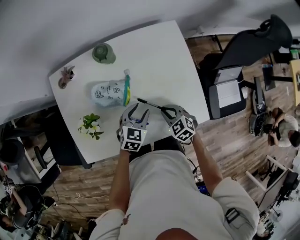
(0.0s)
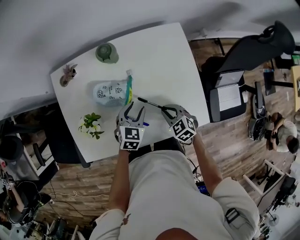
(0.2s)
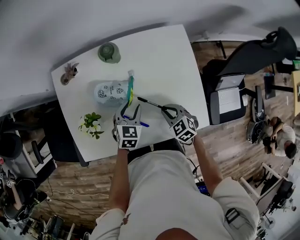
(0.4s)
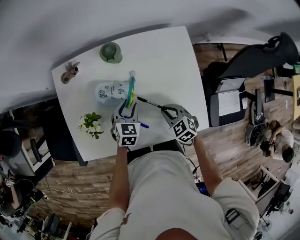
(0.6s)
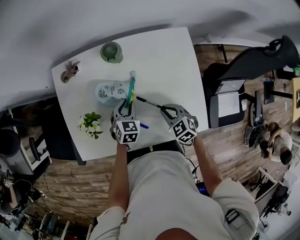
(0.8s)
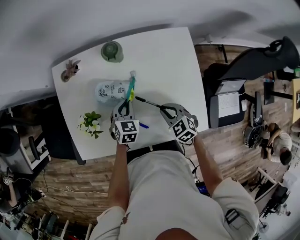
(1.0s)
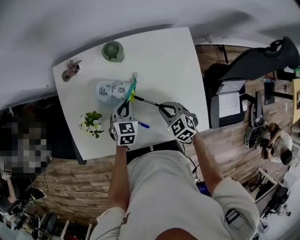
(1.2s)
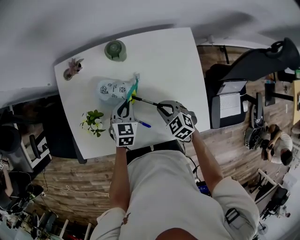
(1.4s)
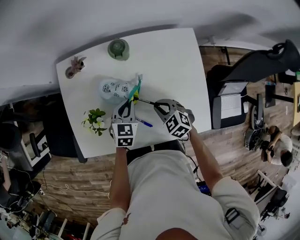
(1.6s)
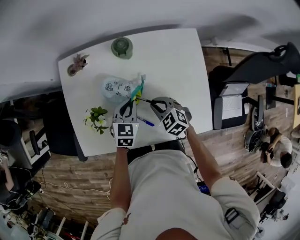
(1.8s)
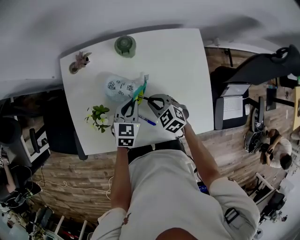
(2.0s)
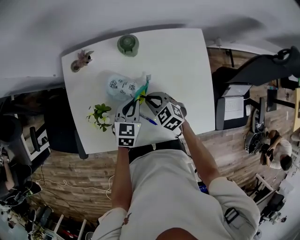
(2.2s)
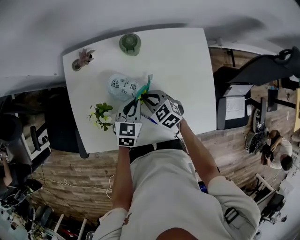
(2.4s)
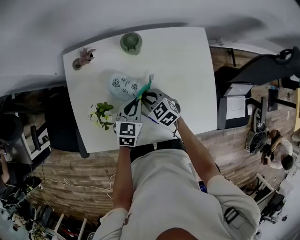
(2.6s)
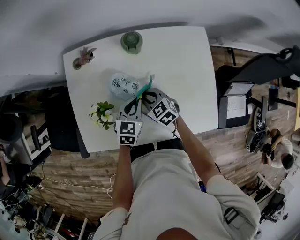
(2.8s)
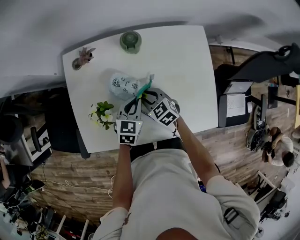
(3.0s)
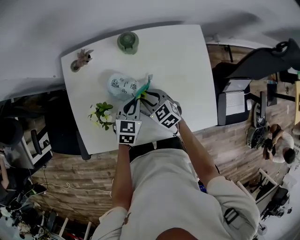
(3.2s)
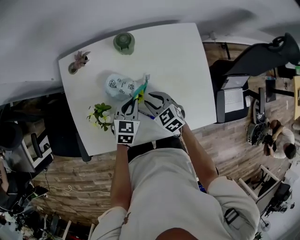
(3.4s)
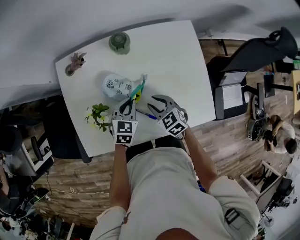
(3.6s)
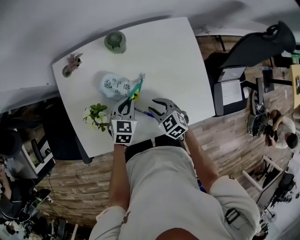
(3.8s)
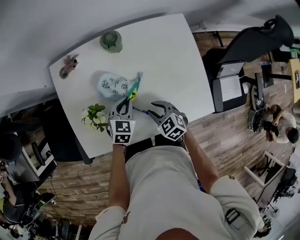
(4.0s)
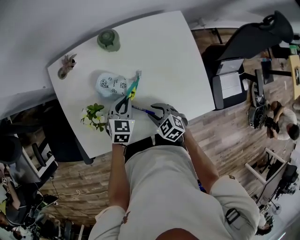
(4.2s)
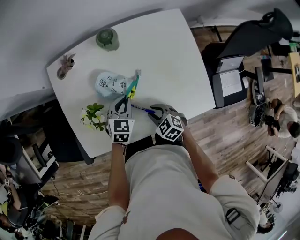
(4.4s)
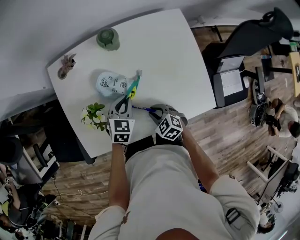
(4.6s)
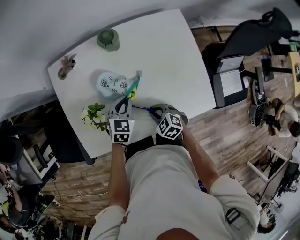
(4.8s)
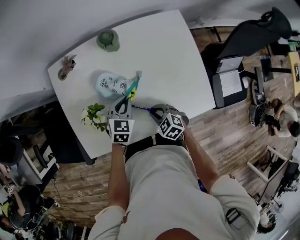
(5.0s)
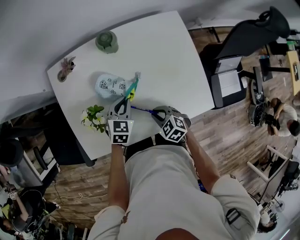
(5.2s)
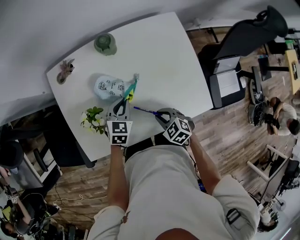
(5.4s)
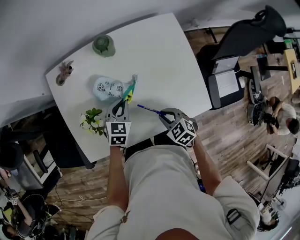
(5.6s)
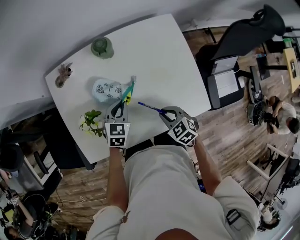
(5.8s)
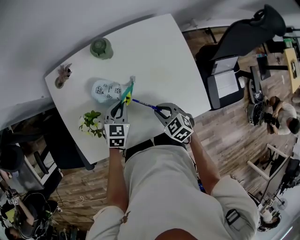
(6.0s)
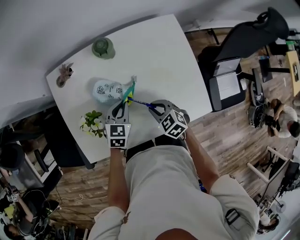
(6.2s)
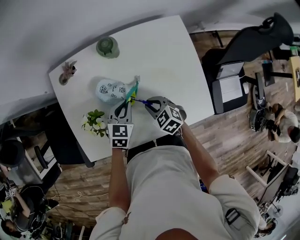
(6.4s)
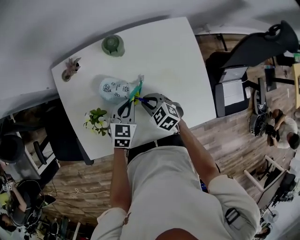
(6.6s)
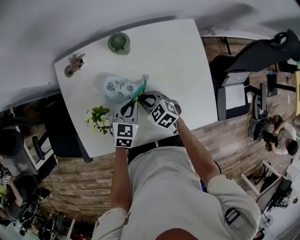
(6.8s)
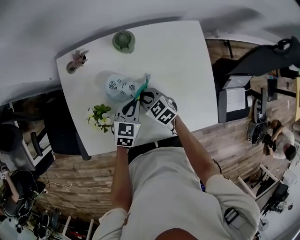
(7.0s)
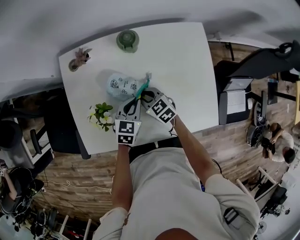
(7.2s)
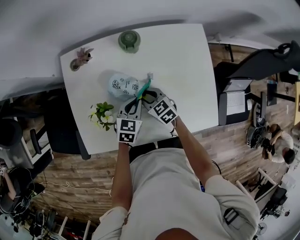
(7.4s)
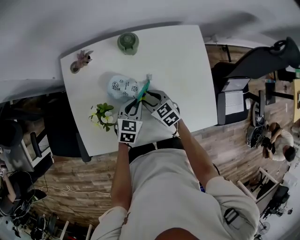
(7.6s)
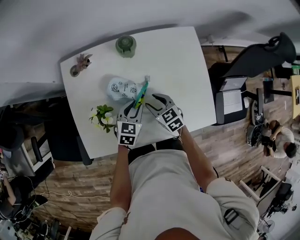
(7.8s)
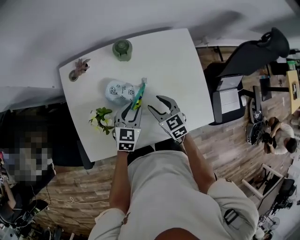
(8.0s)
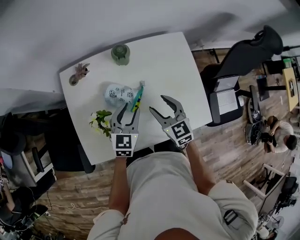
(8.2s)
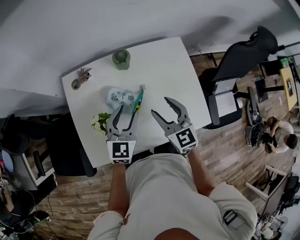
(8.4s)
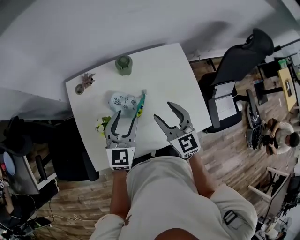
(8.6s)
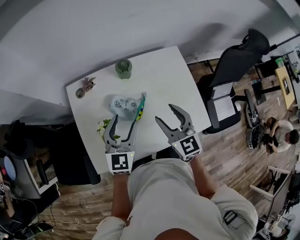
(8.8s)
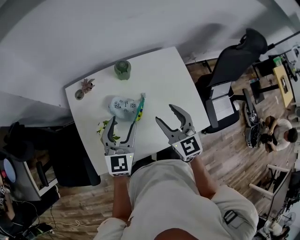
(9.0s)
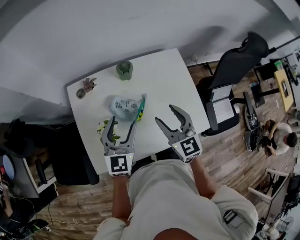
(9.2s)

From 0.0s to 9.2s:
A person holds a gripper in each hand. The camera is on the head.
From 0.0s to 1.6s: The two grippers go approximately 10 cm forward and to the left. The left gripper closes.
From 1.6s to 3.0s: The right gripper shifts some 10 cm to the left and forward.
From 3.0s to 4.6s: The right gripper moves backward, some 15 cm.
From 4.6s to 6.2s: The right gripper is displaced forward and upward by about 5 cm.
From 6.2s to 7.6s: The right gripper heads forward and to the left, covering roughly 10 cm, and opens up.
From 7.6s to 9.2s: The grippers both shift upward by about 25 cm. The right gripper rotates about 40 degrees, while the left gripper tips its fingers upward by some 30 degrees, and opens.

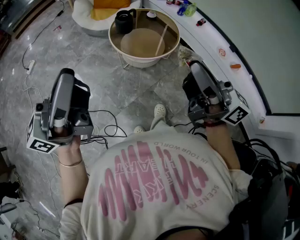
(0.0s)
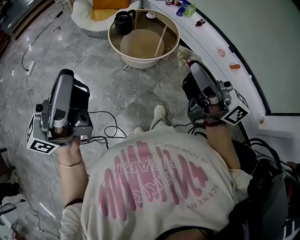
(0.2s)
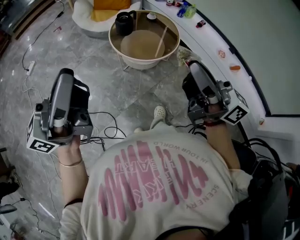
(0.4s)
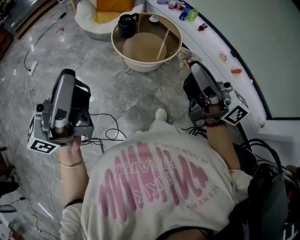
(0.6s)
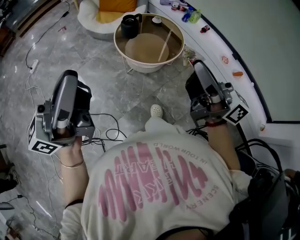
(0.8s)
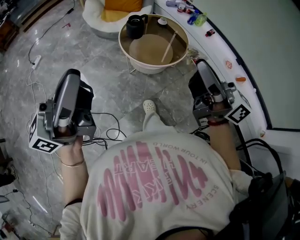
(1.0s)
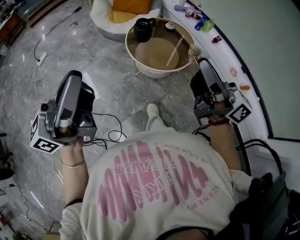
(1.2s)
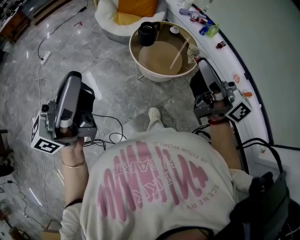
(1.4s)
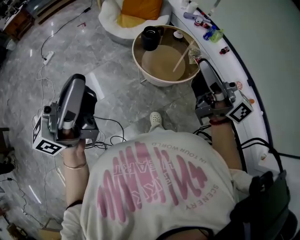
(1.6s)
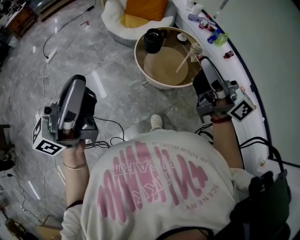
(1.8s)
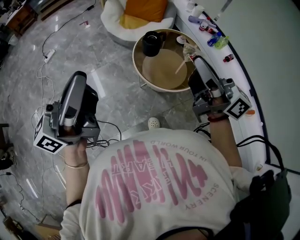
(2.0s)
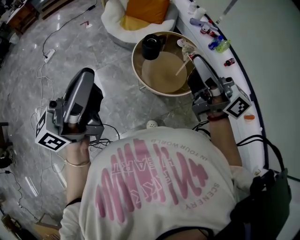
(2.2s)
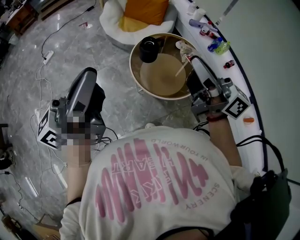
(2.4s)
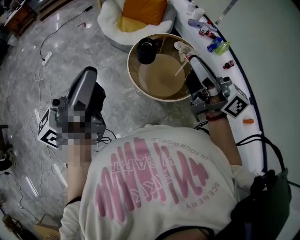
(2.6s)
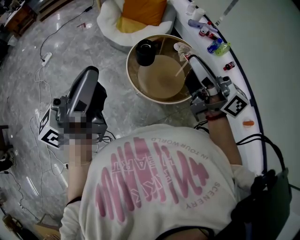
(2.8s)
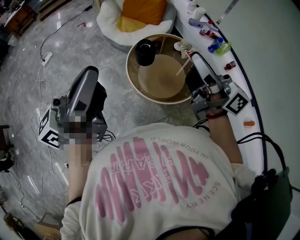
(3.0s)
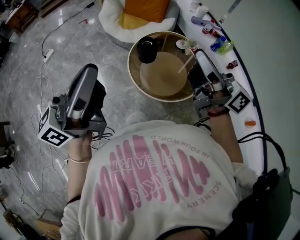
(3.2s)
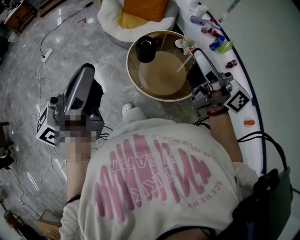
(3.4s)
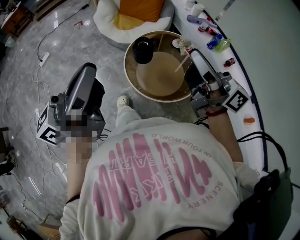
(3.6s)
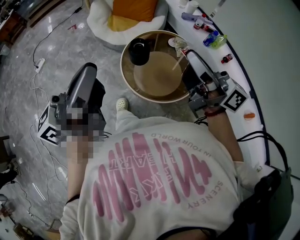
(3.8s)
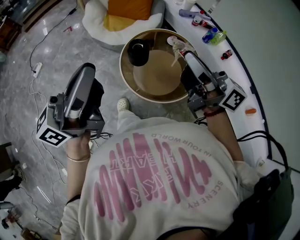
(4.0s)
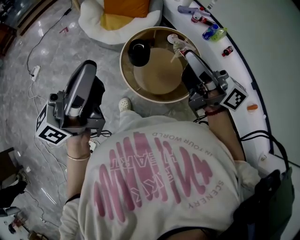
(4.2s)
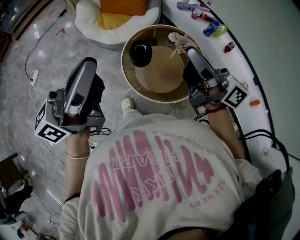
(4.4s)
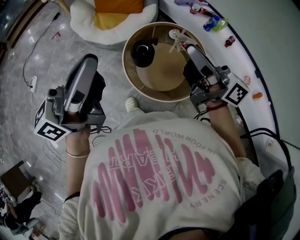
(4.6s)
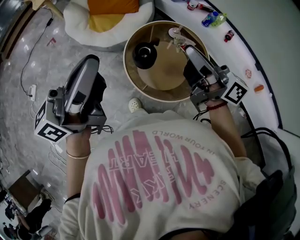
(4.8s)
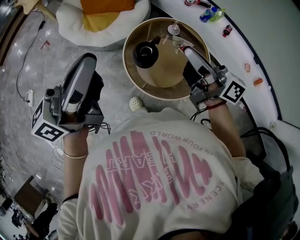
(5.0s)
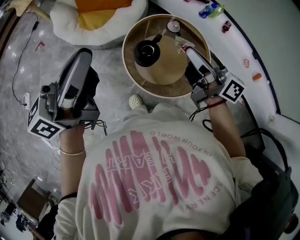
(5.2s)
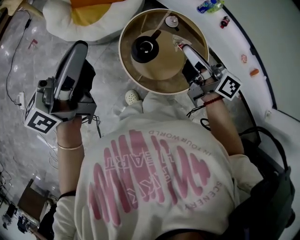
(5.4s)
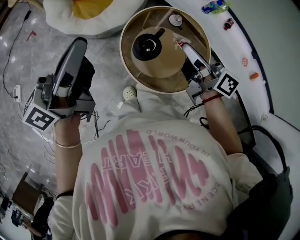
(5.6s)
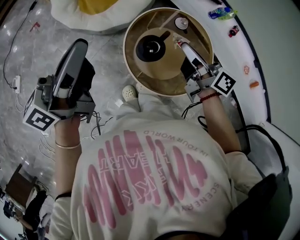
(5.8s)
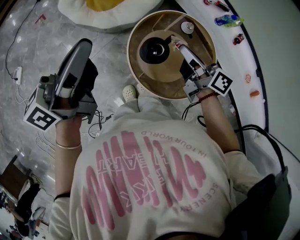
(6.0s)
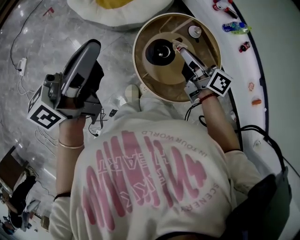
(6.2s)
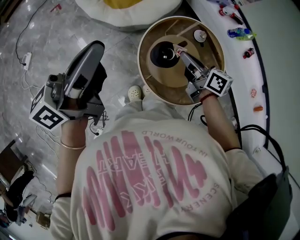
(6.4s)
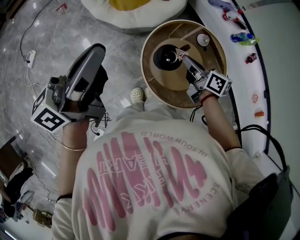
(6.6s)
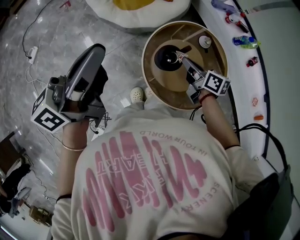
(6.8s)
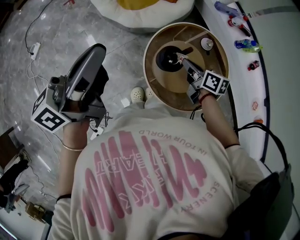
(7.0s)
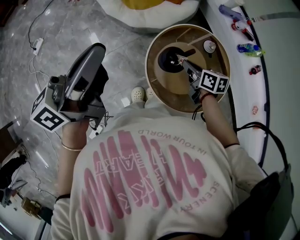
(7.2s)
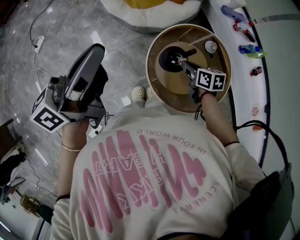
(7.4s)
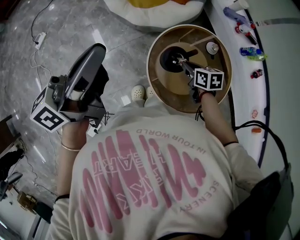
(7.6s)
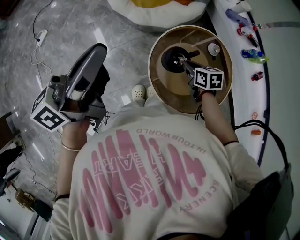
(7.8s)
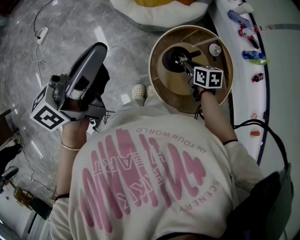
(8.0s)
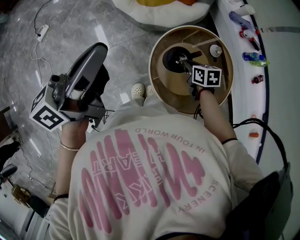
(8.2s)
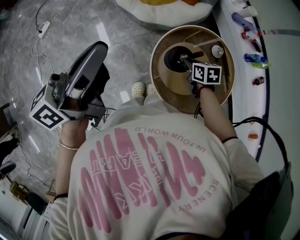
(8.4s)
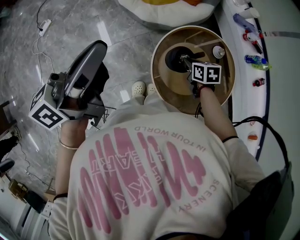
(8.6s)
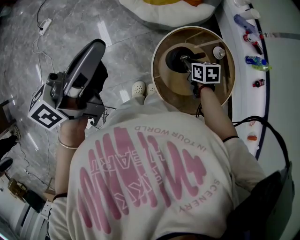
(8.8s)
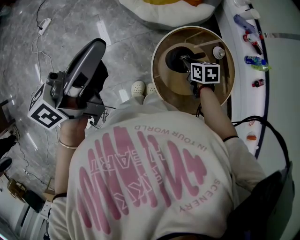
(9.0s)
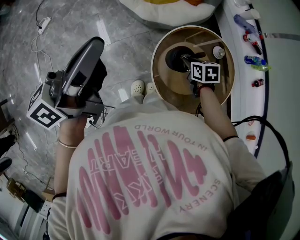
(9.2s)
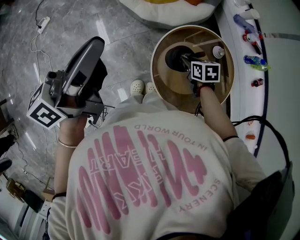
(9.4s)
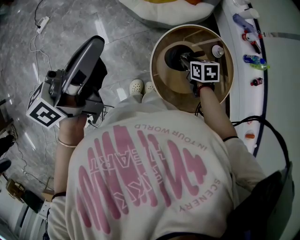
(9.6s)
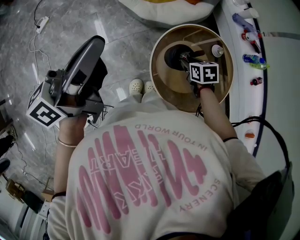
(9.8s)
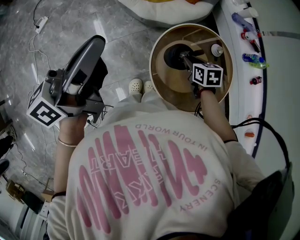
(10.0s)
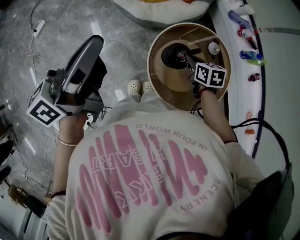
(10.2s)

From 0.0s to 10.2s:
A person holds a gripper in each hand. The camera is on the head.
From 0.0s to 1.4s: The right gripper moves forward, some 10 cm. The left gripper shifts some 5 cm forward.
From 1.4s to 3.0s: The left gripper moves forward and to the right, roughly 25 cm; the right gripper goes roughly 25 cm forward.
From 3.0s to 4.4s: The left gripper travels forward by some 15 cm. The right gripper shifts about 10 cm forward.
From 4.4s to 5.8s: The right gripper moves downward, forward and to the left, roughly 25 cm, and swivels some 30 degrees. The left gripper heads forward, to the left and downward, covering approximately 25 cm.
From 5.8s to 7.2s: The left gripper moves backward, some 5 cm. The right gripper heads downward, covering approximately 15 cm, and angles its fingers downward, by about 30 degrees.
From 7.2s to 8.8s: The right gripper moves downward, roughly 5 cm, and rotates roughly 30 degrees.
From 8.8s to 10.2s: The right gripper opens, then closes again.

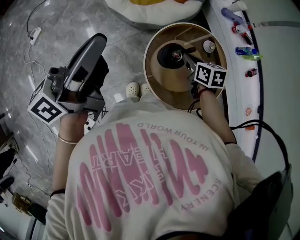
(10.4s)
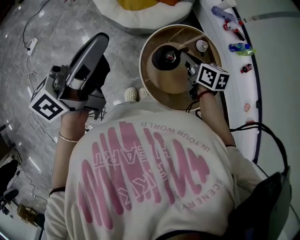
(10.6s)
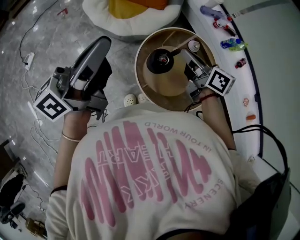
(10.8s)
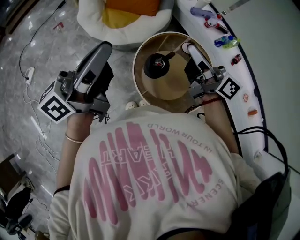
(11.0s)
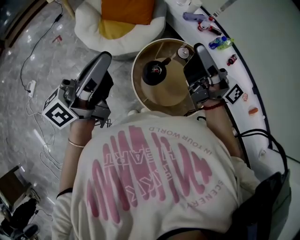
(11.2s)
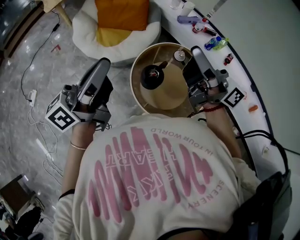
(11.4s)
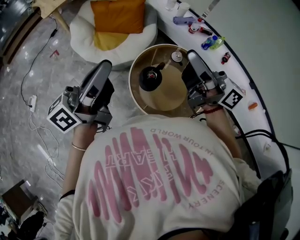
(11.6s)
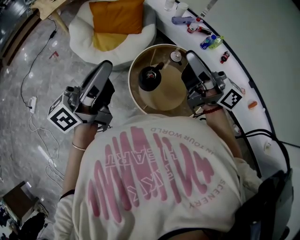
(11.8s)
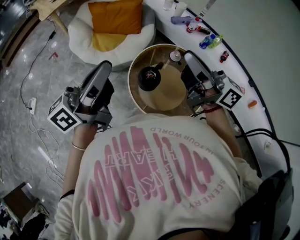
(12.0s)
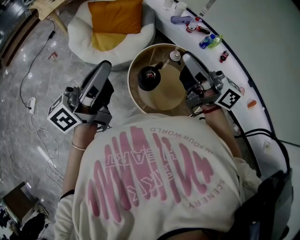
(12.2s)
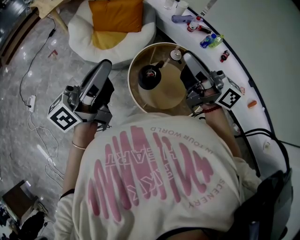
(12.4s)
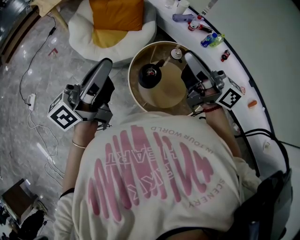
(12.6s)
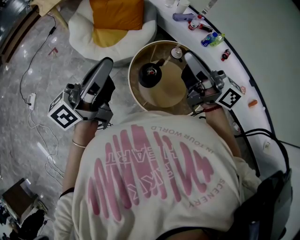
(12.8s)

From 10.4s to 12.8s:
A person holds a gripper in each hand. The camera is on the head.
From 10.4s to 11.6s: The left gripper shifts some 10 cm to the right, and swivels about 20 degrees; the right gripper travels upward by some 35 cm, and angles its fingers upward, by roughly 70 degrees.
From 11.6s to 12.8s: The grippers move only a little.

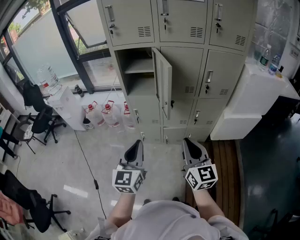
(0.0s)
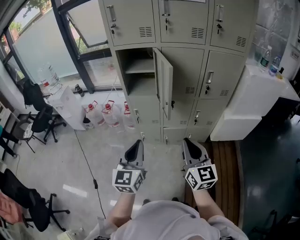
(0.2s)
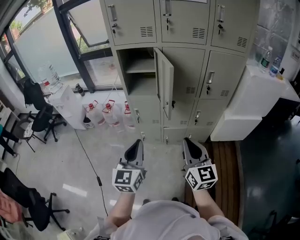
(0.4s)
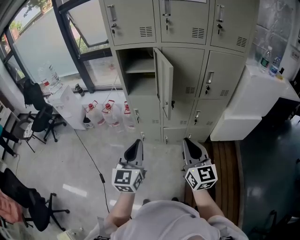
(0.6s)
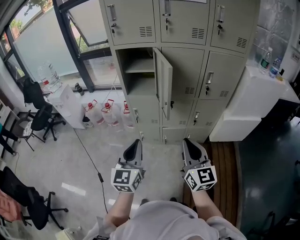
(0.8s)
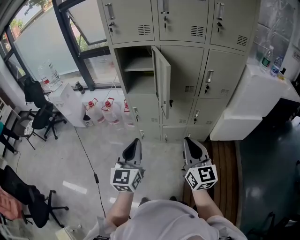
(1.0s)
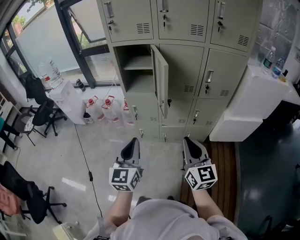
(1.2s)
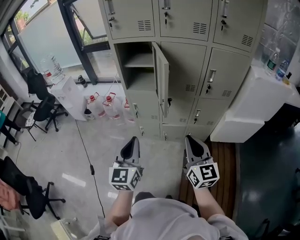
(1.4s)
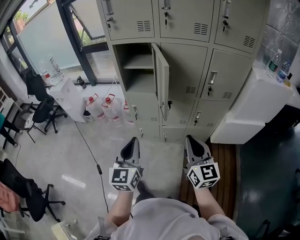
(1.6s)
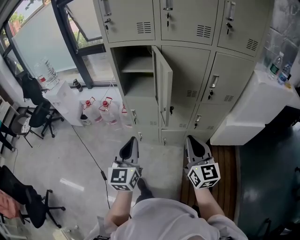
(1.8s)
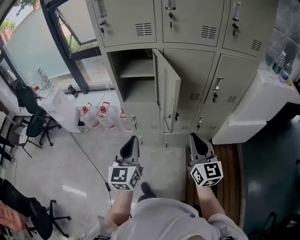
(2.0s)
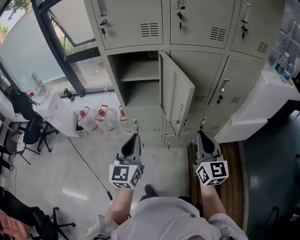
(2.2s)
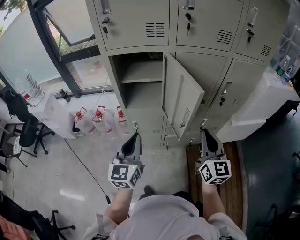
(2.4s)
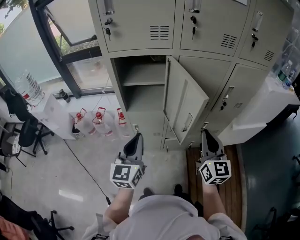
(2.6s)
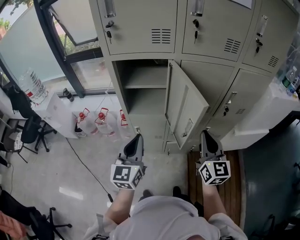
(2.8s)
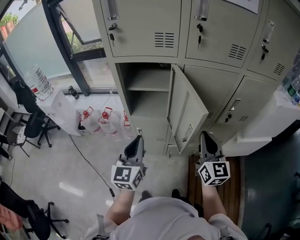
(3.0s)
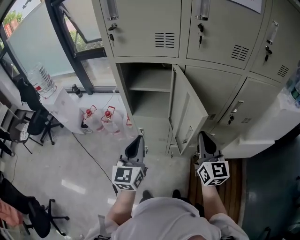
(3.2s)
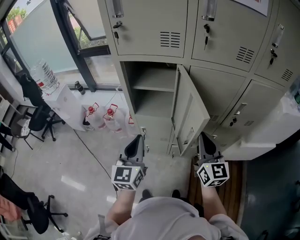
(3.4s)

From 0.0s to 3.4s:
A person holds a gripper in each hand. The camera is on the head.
From 0.0s to 1.6s: The right gripper shifts roughly 5 cm to the right.
From 1.6s to 3.4s: The right gripper heads forward, covering approximately 25 cm, while the left gripper travels forward and to the left by approximately 25 cm.
